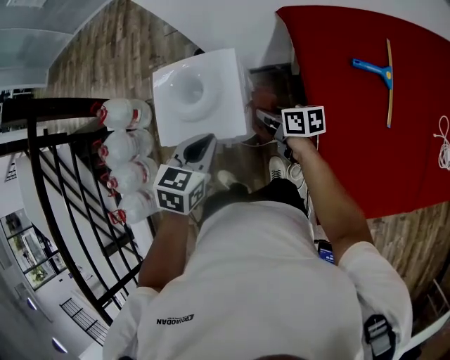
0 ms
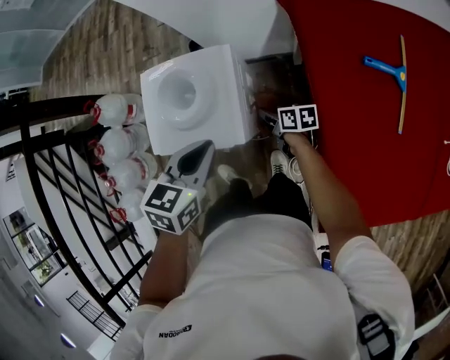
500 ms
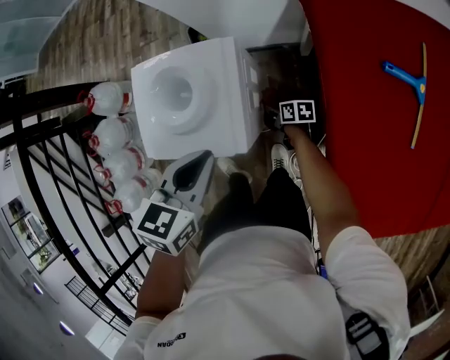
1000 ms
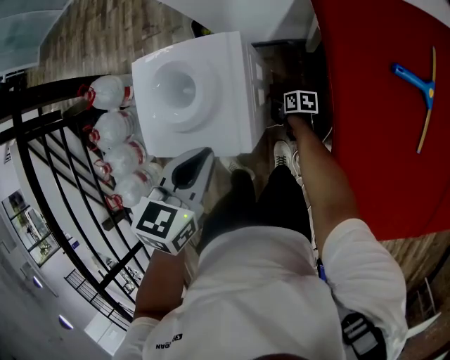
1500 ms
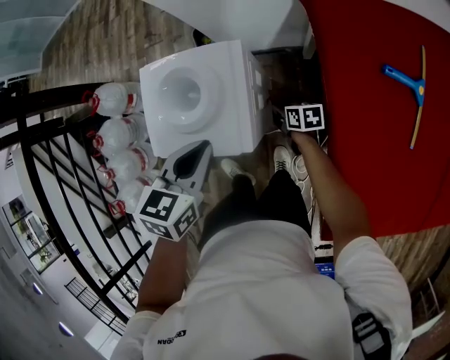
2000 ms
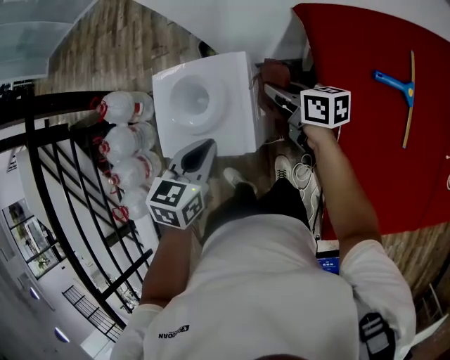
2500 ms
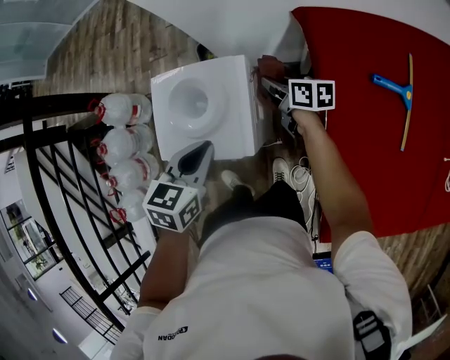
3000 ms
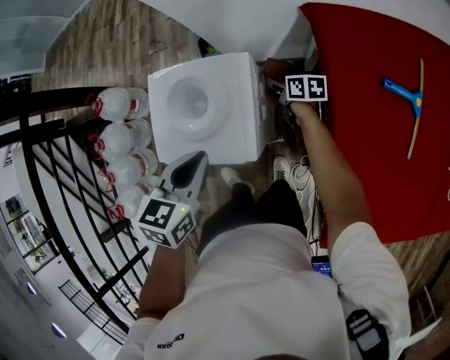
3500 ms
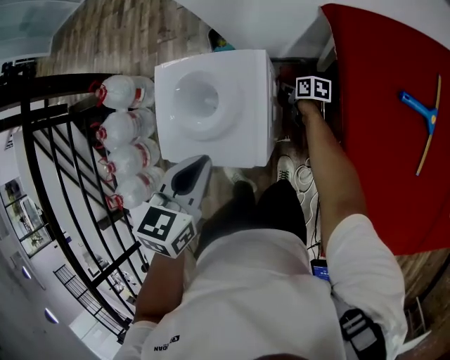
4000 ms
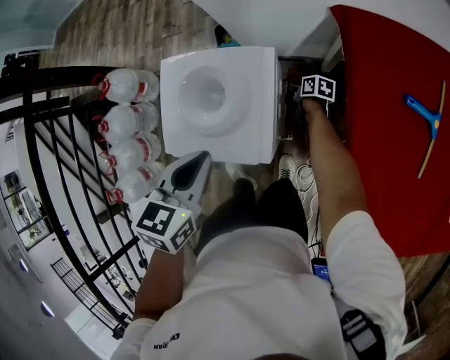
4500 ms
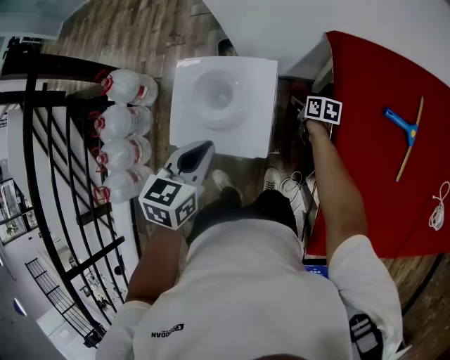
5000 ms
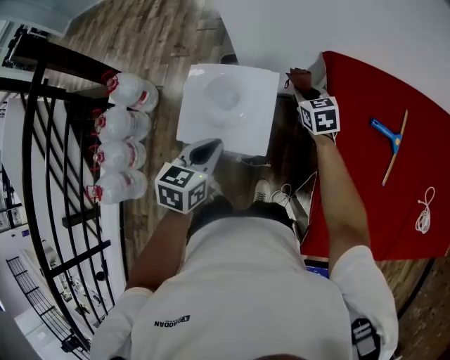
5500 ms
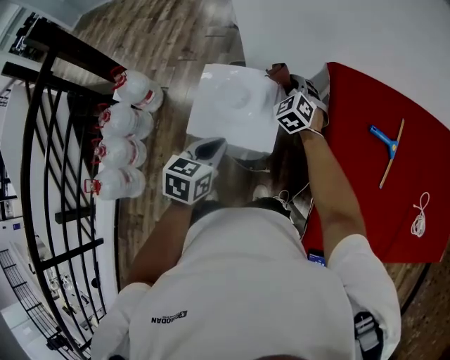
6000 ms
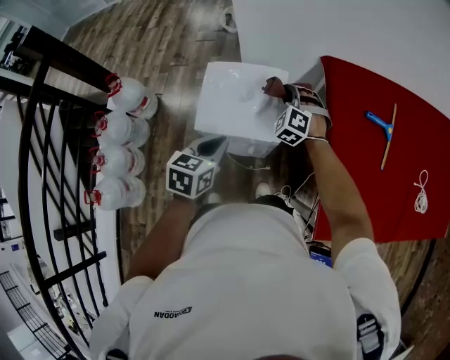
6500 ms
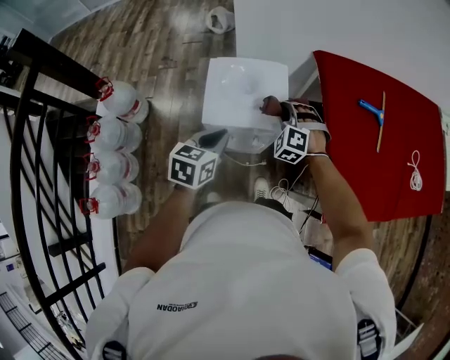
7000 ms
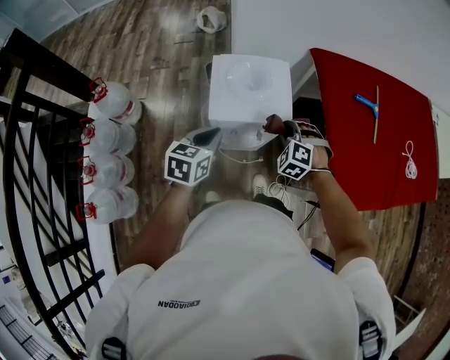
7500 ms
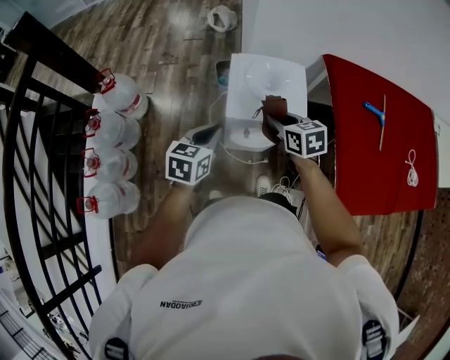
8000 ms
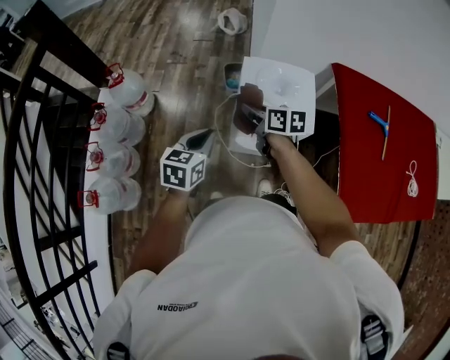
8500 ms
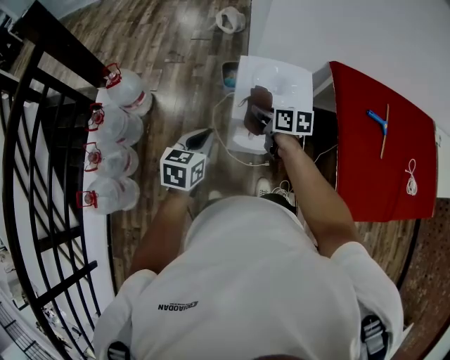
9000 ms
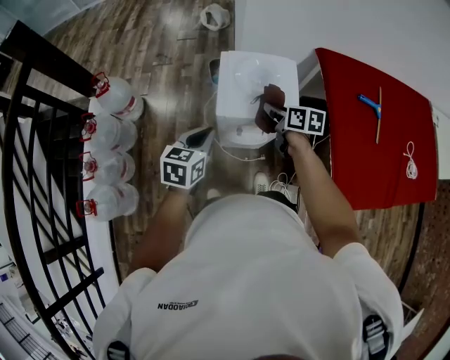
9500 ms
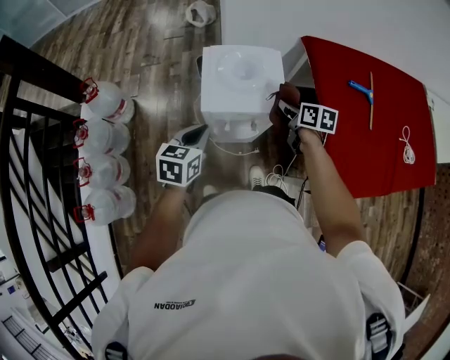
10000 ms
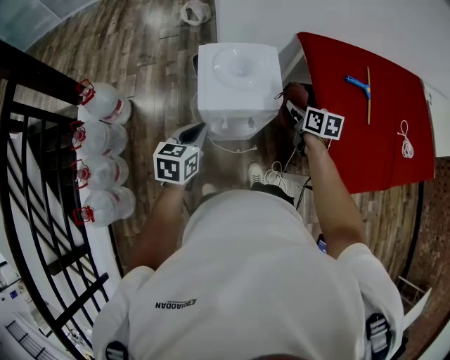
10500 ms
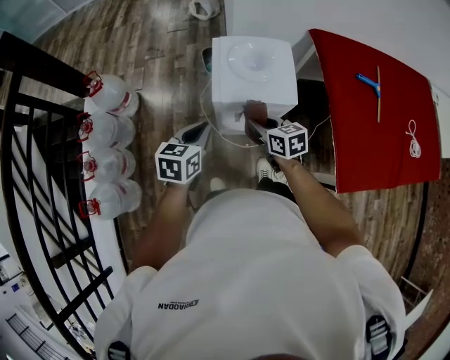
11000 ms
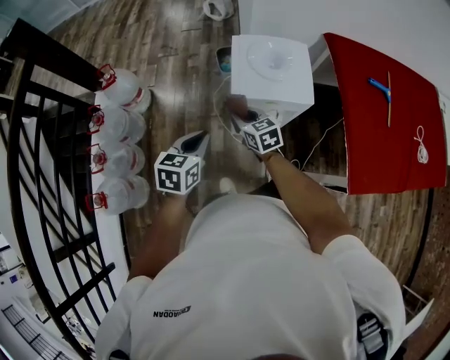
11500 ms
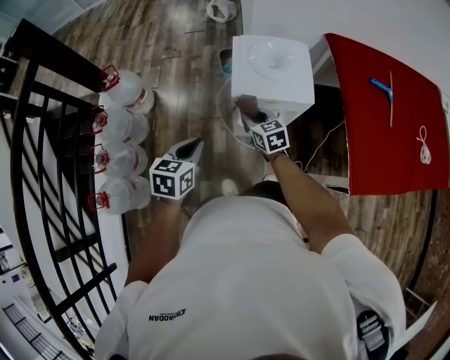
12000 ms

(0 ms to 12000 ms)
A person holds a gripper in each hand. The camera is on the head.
0 ms - 2000 ms: The right gripper is displaced downward by about 20 cm.
2000 ms - 4000 ms: The right gripper heads forward, covering approximately 10 cm, and goes upward and returns, about 25 cm each way.
4000 ms - 6000 ms: The right gripper heads upward, covering about 35 cm, and rotates around the line of its fingers by some 90 degrees, counterclockwise from behind.
6000 ms - 8000 ms: The left gripper moves to the left and backward, about 15 cm, while the right gripper goes approximately 25 cm backward and to the left, and rotates around the line of its fingers by approximately 50 degrees, clockwise from behind.
8000 ms - 10000 ms: The right gripper shifts roughly 15 cm to the right, and changes its angle by roughly 30 degrees.
10000 ms - 12000 ms: The right gripper shifts approximately 20 cm to the left, and turns by approximately 30 degrees. Meanwhile the left gripper is displaced to the left and backward by some 15 cm.

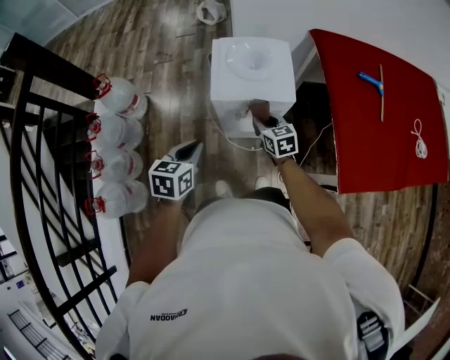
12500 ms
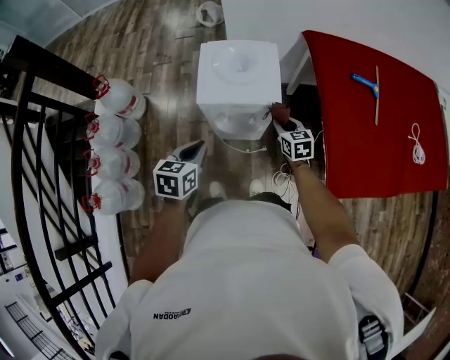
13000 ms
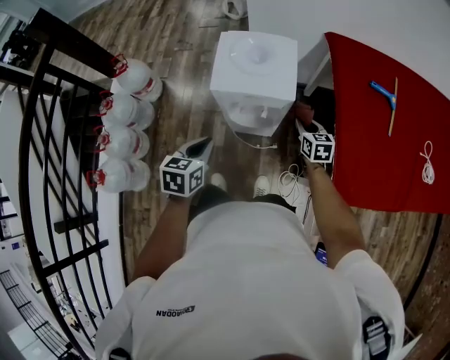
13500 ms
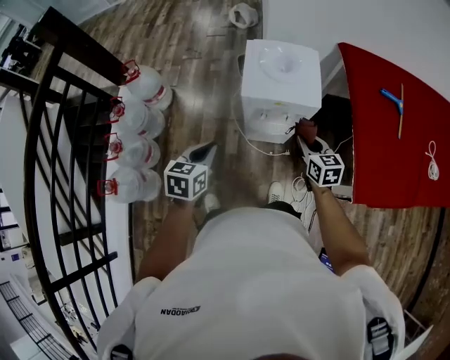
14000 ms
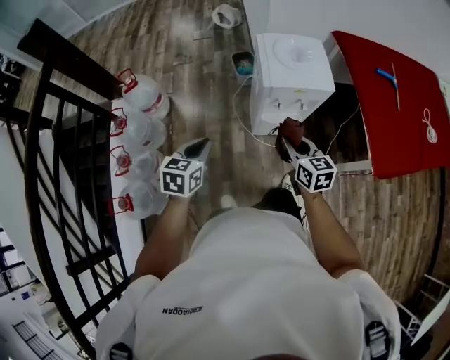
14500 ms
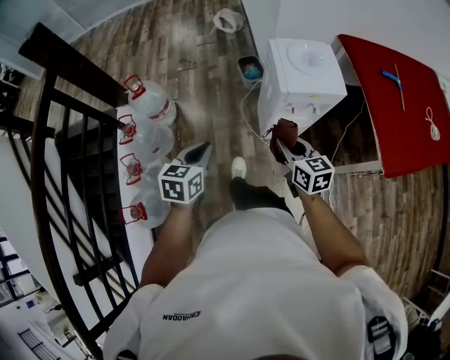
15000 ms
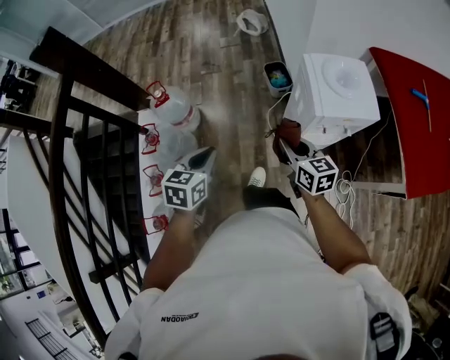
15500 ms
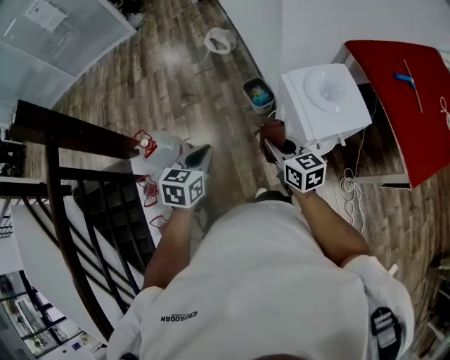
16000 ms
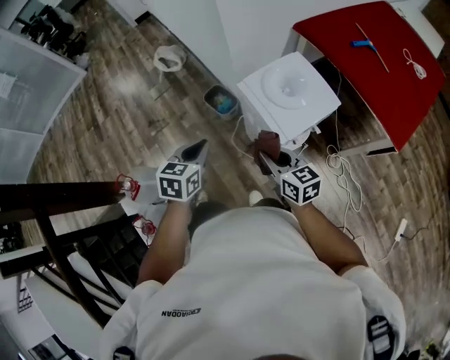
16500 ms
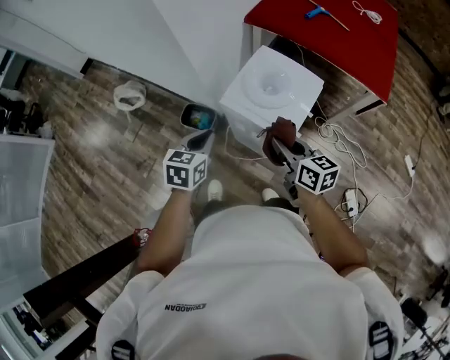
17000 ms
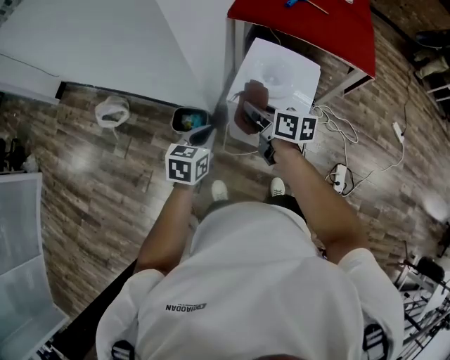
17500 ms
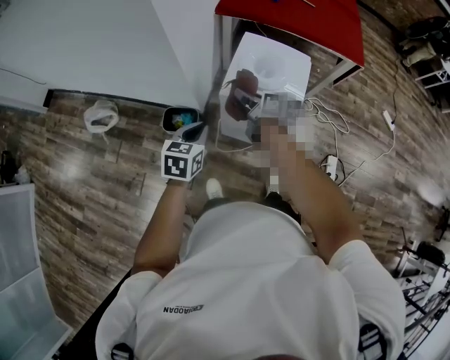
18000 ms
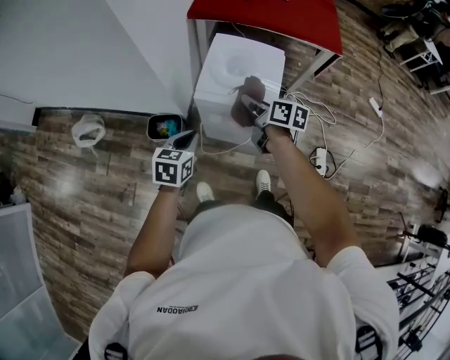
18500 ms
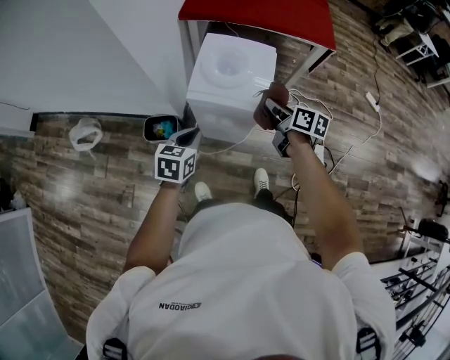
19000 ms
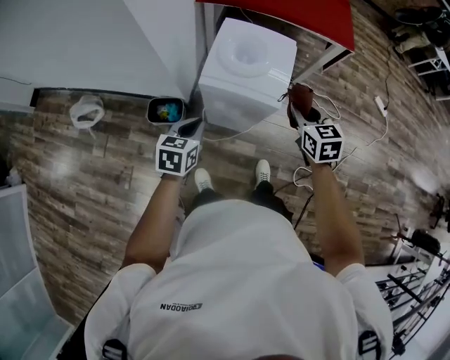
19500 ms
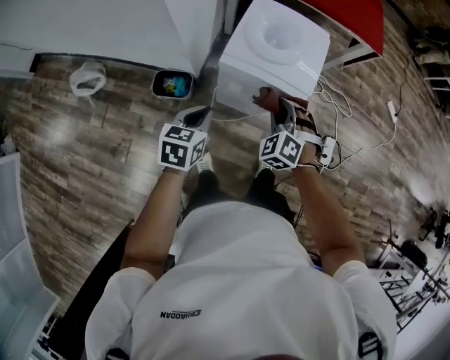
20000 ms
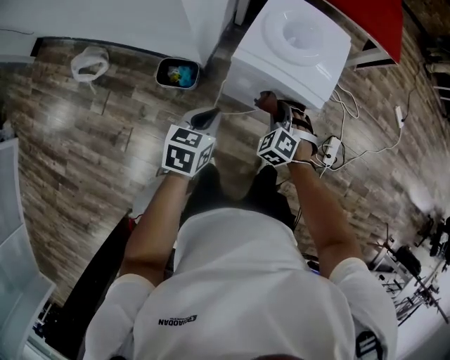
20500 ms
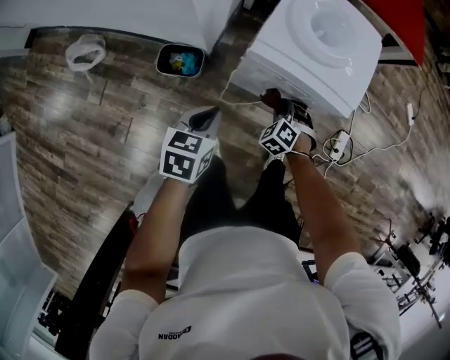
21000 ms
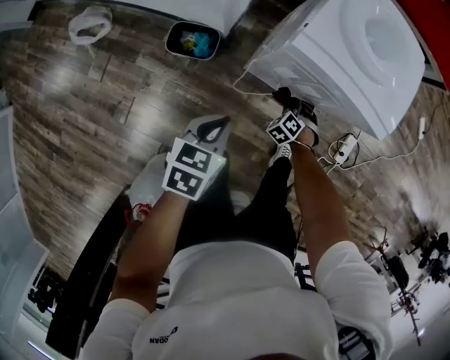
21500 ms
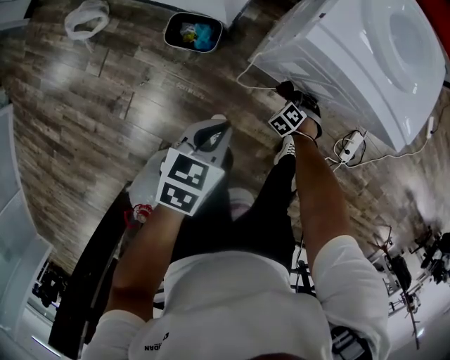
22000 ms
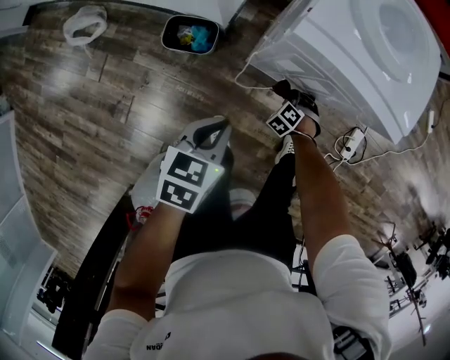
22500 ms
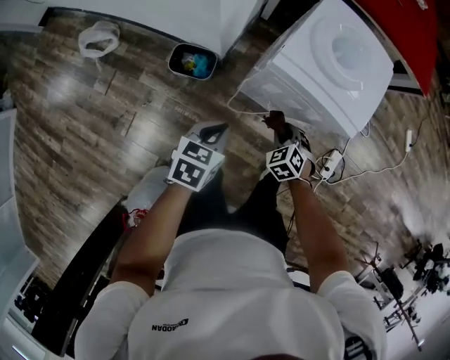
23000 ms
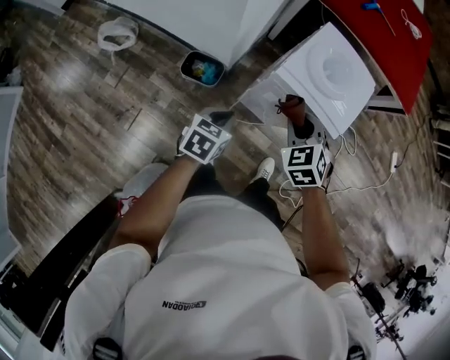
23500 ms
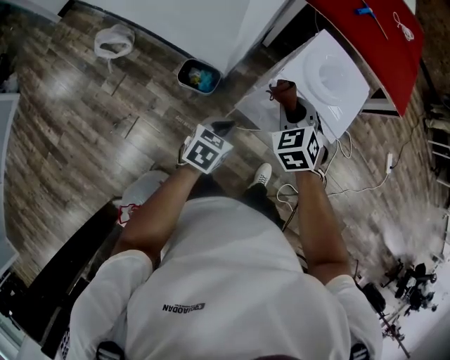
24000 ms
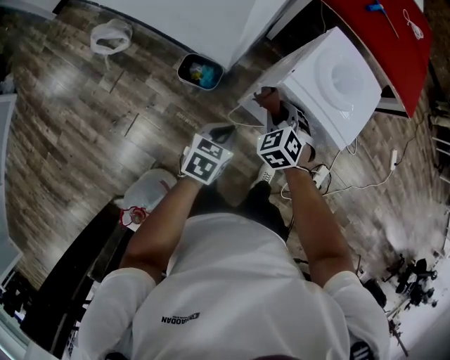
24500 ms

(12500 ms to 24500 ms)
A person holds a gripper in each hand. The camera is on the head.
12500 ms - 14500 ms: The right gripper heads backward, to the left and upward, covering some 20 cm; the left gripper moves to the left, some 15 cm.
14500 ms - 16500 ms: The right gripper changes place by some 25 cm, and turns by about 20 degrees, while the left gripper shifts by about 30 cm, and changes its angle by about 30 degrees.
16500 ms - 18500 ms: The left gripper shifts by some 15 cm, and swivels approximately 40 degrees. The right gripper swivels some 60 degrees.
18500 ms - 20500 ms: The left gripper shifts approximately 5 cm downward. Meanwhile the right gripper moves downward and backward, about 15 cm, and rotates around the line of its fingers by some 100 degrees, counterclockwise from behind.
20500 ms - 22500 ms: The left gripper is displaced downward and backward by about 10 cm, while the right gripper is displaced downward by roughly 30 cm, and rotates some 20 degrees.
22500 ms - 24500 ms: The left gripper goes roughly 5 cm upward. Meanwhile the right gripper heads upward and to the left, covering roughly 40 cm, and swivels roughly 30 degrees.

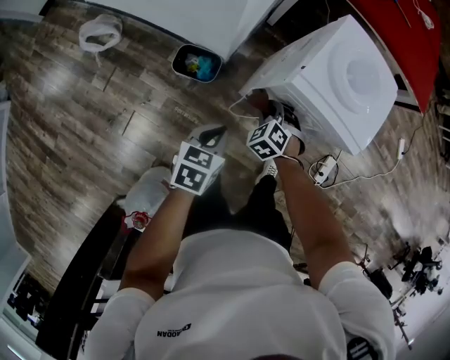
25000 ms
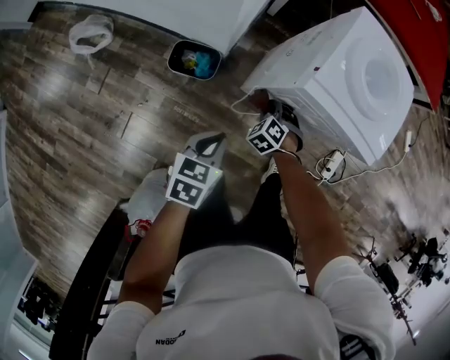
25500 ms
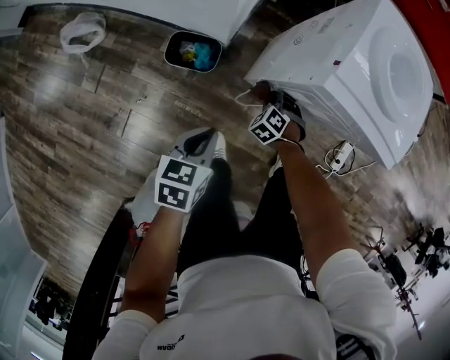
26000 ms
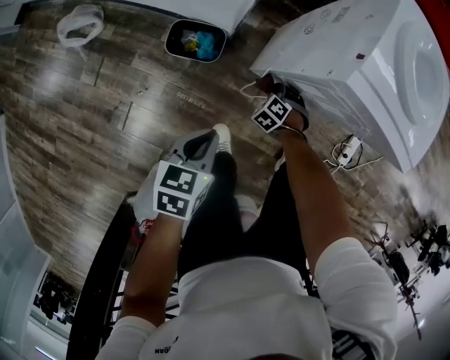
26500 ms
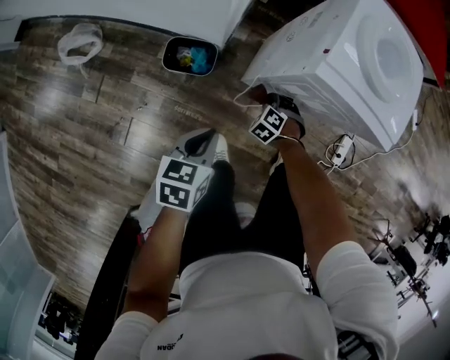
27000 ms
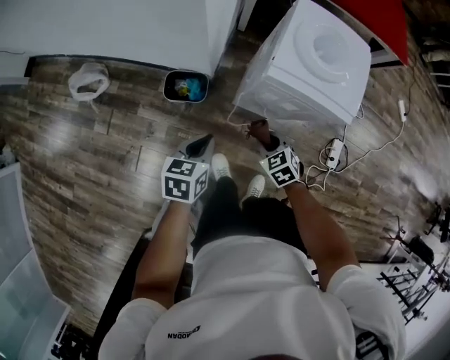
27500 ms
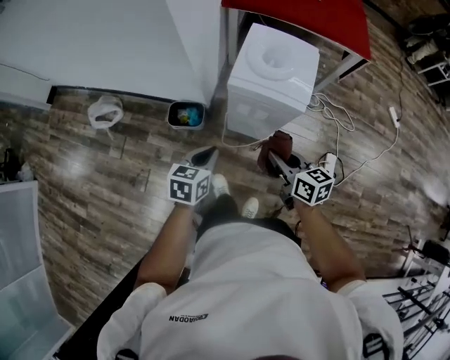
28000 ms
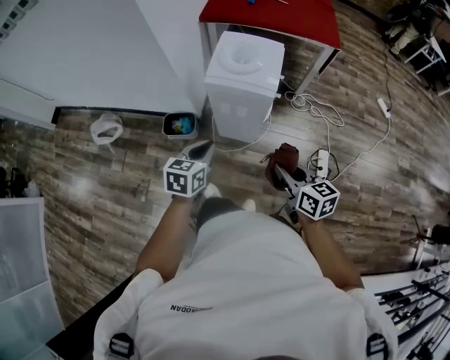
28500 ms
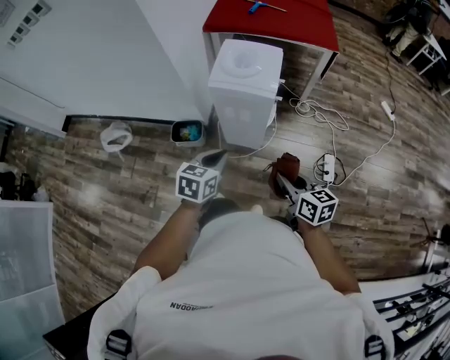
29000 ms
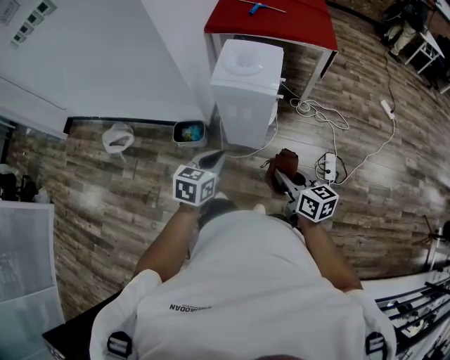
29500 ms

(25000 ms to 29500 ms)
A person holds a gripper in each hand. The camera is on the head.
25000 ms - 27000 ms: The left gripper moves roughly 5 cm. The right gripper goes about 15 cm downward.
27000 ms - 29500 ms: The left gripper travels upward, to the right and backward by some 30 cm, and changes its angle by about 20 degrees; the right gripper is displaced upward, backward and to the right by some 50 cm, and points its fingers about 50 degrees further upward.
